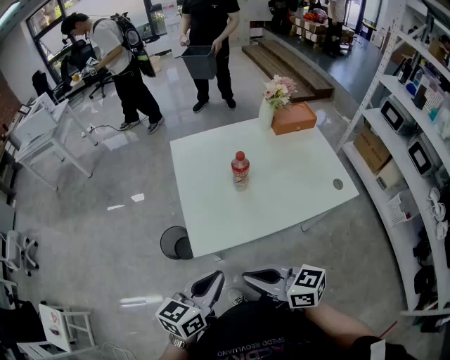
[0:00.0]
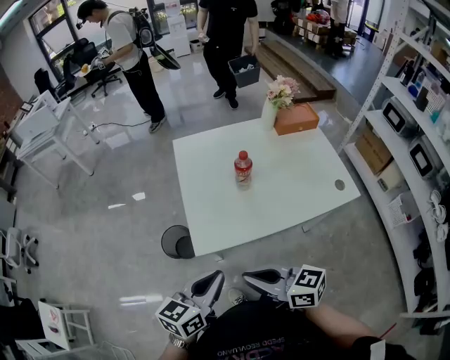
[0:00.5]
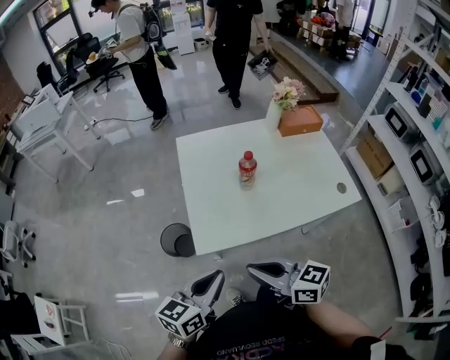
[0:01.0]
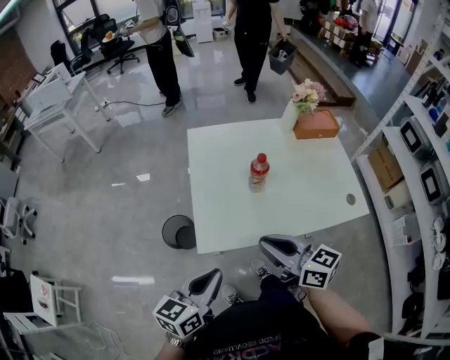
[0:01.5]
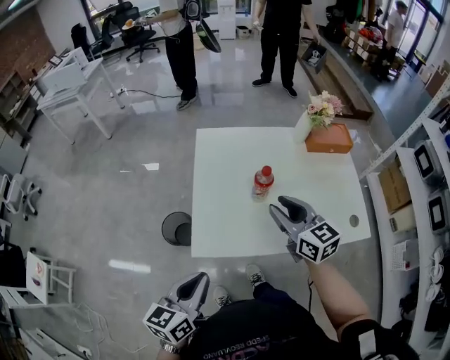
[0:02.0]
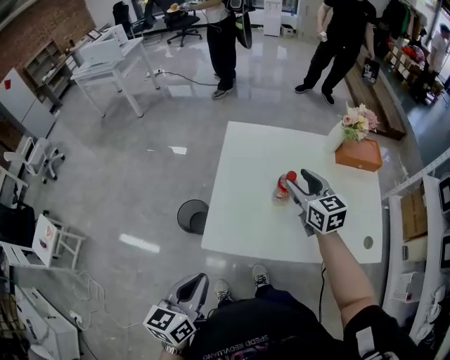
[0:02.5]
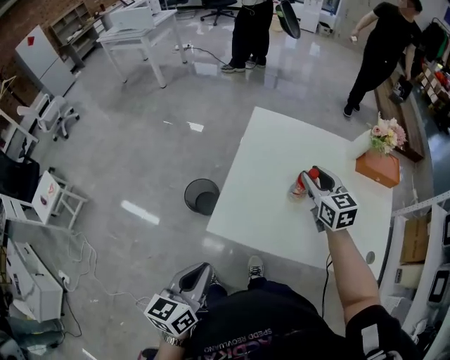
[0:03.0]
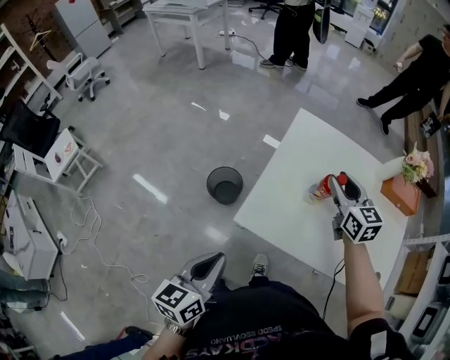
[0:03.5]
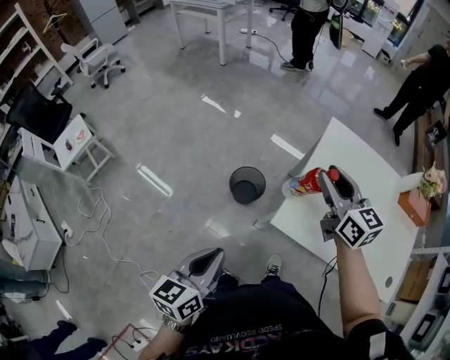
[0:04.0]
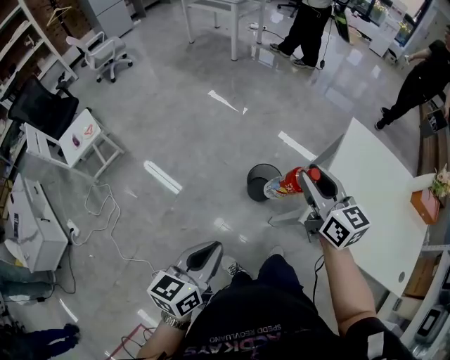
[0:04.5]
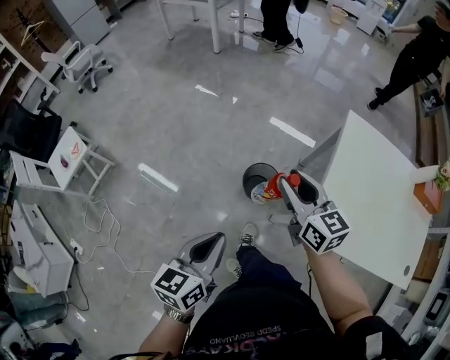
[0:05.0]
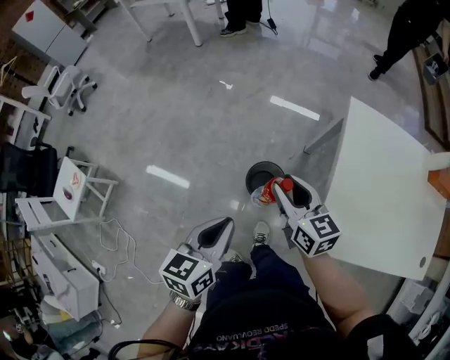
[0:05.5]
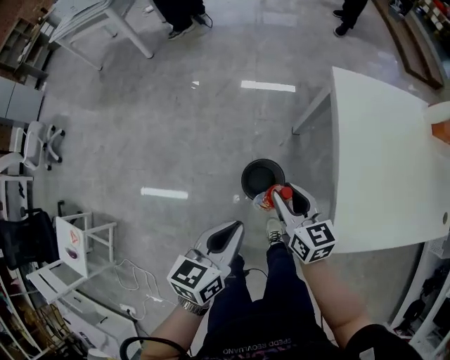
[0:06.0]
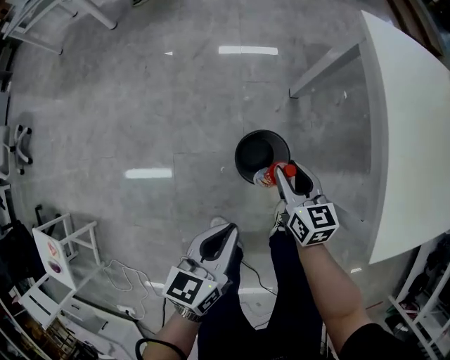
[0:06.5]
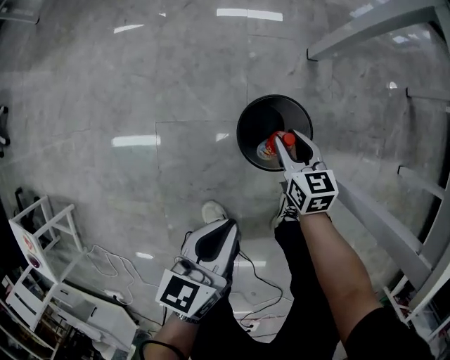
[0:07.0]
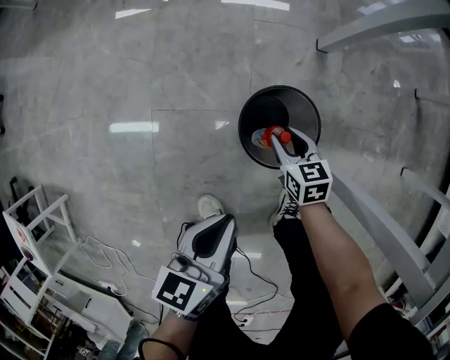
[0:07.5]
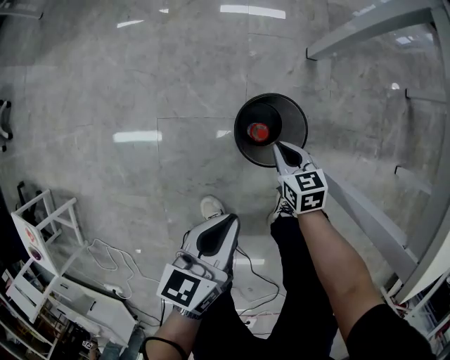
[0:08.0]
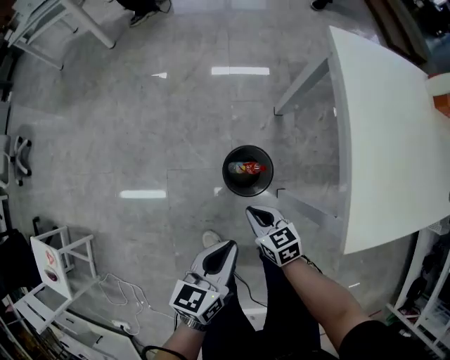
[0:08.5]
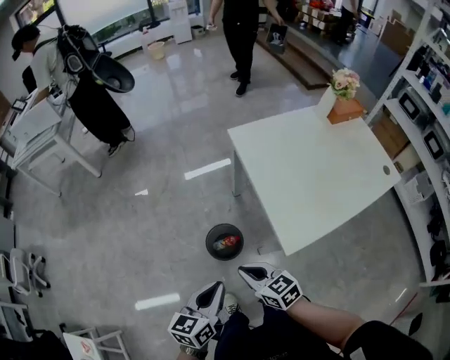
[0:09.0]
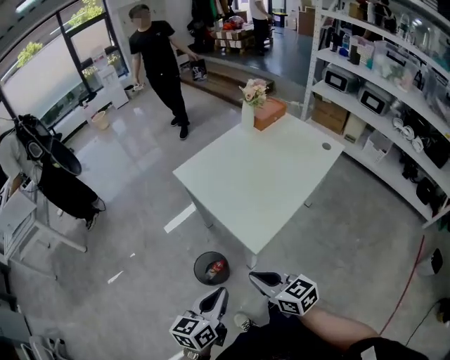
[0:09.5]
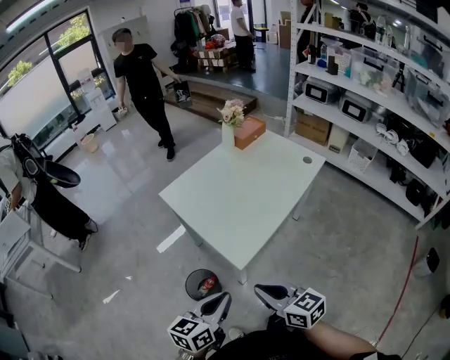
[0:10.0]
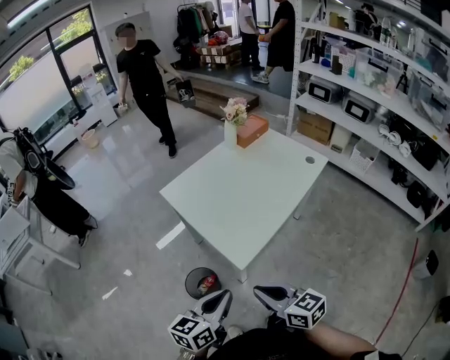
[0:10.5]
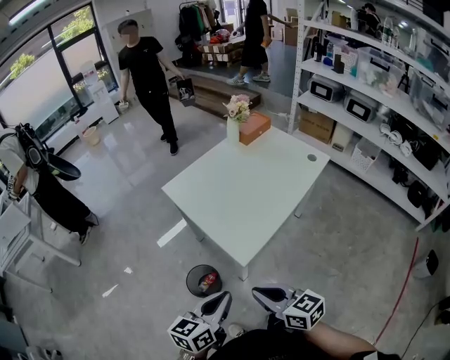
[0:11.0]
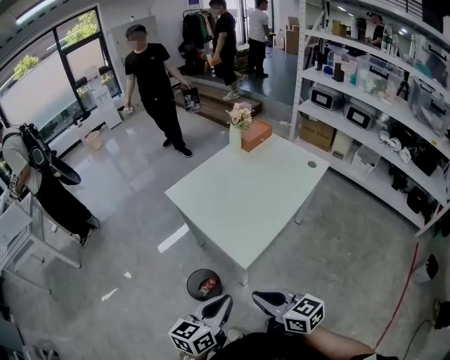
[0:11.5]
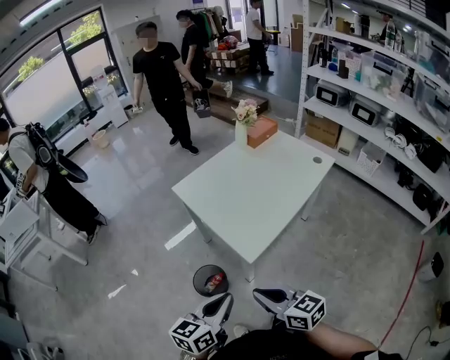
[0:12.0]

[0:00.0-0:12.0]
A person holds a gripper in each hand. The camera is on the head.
0:00.0 to 0:02.0: The left gripper rotates some 20 degrees, while the right gripper is displaced forward and to the right by approximately 30 cm, rotates roughly 30 degrees, and opens its fingers.
0:02.0 to 0:04.0: The left gripper ends up roughly 20 cm from where it was, and swivels about 30 degrees; the right gripper ends up roughly 30 cm from where it was, rotates roughly 20 degrees, and opens, then closes once more.
0:04.0 to 0:06.0: The left gripper changes place by approximately 35 cm, and turns by approximately 30 degrees. Meanwhile the right gripper is displaced downward by roughly 25 cm, and rotates approximately 30 degrees.
0:06.0 to 0:08.0: Both grippers travel together downward, about 40 cm. The right gripper changes its angle by approximately 20 degrees, and closes.
0:08.0 to 0:10.0: Both grippers move upward, some 60 cm. The right gripper tilts its fingers some 30 degrees upward; the left gripper swivels about 50 degrees.
0:10.0 to 0:12.0: The grippers move only a little.

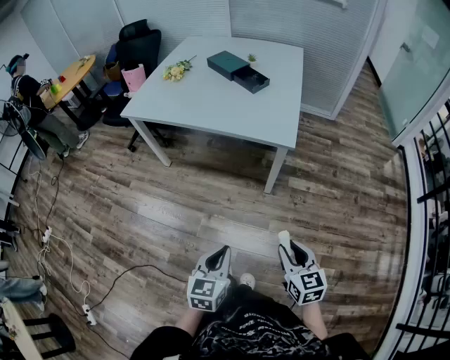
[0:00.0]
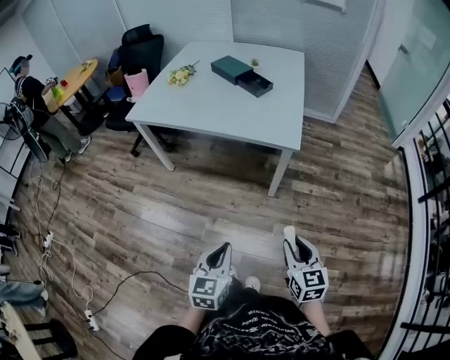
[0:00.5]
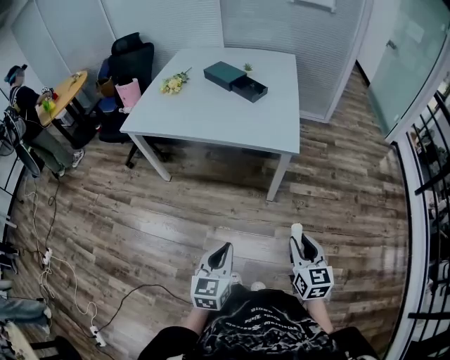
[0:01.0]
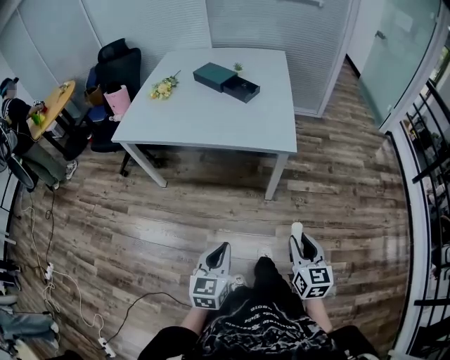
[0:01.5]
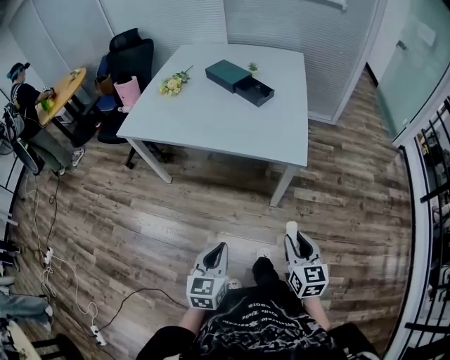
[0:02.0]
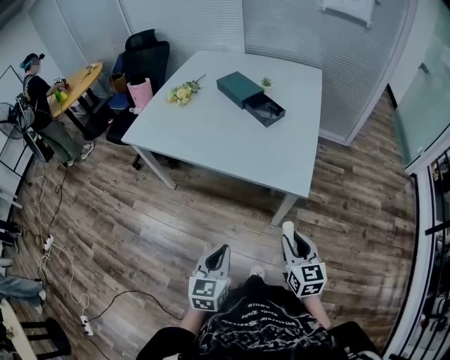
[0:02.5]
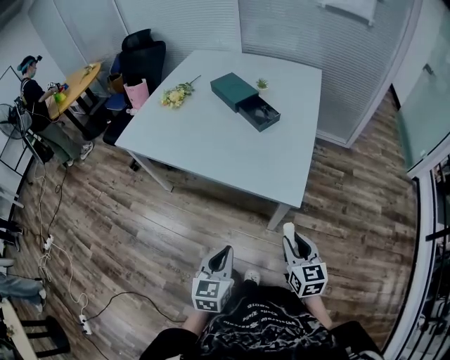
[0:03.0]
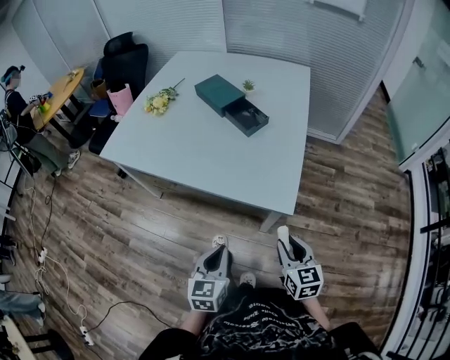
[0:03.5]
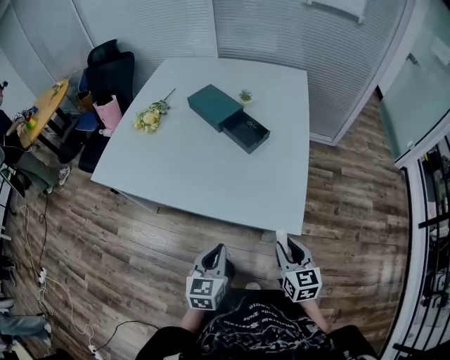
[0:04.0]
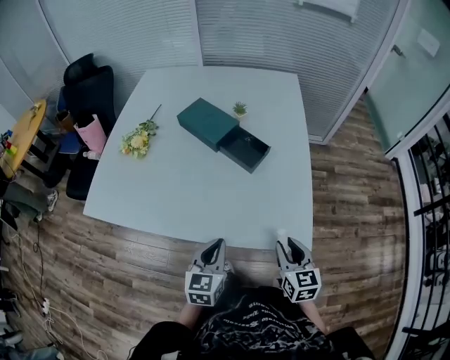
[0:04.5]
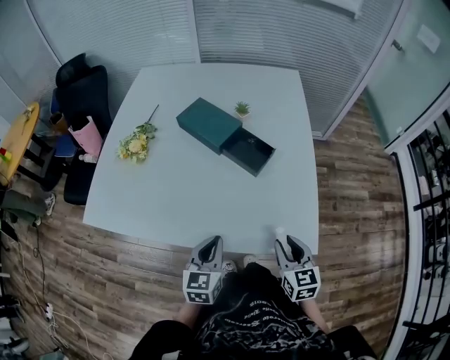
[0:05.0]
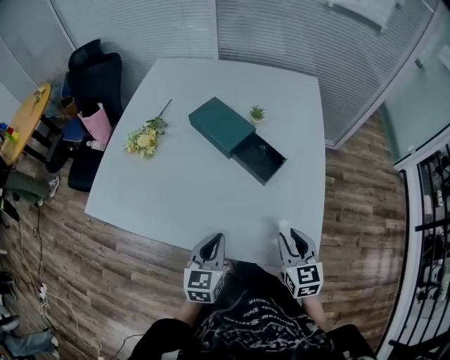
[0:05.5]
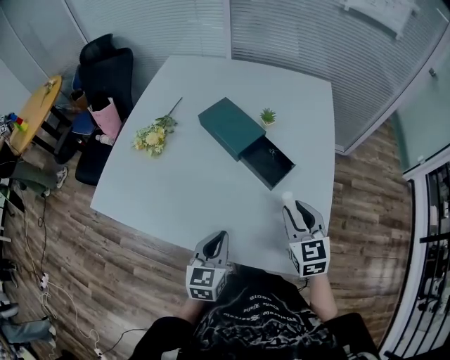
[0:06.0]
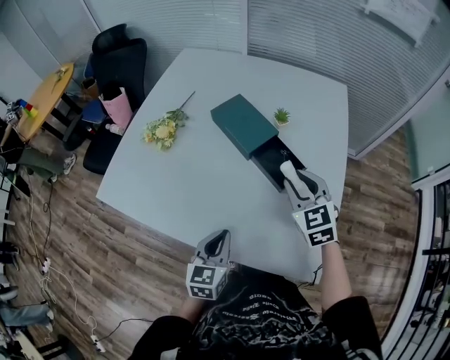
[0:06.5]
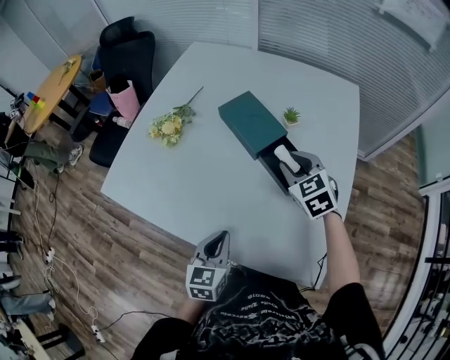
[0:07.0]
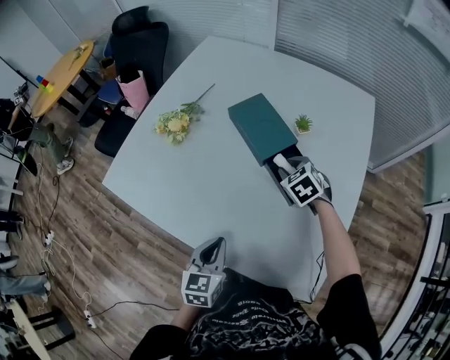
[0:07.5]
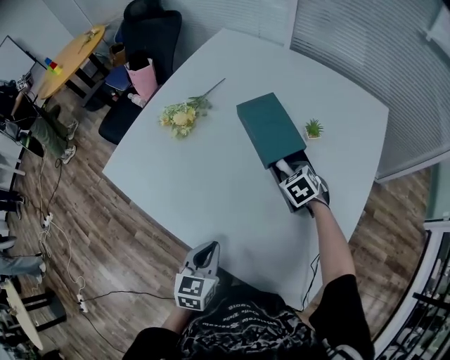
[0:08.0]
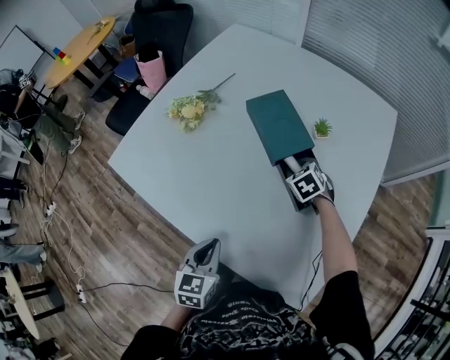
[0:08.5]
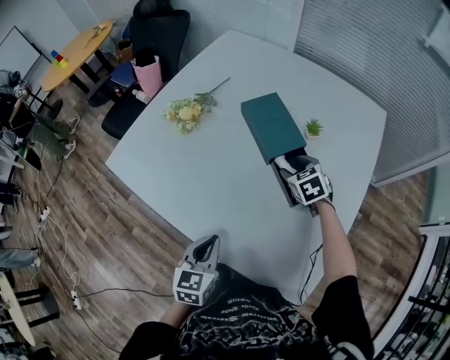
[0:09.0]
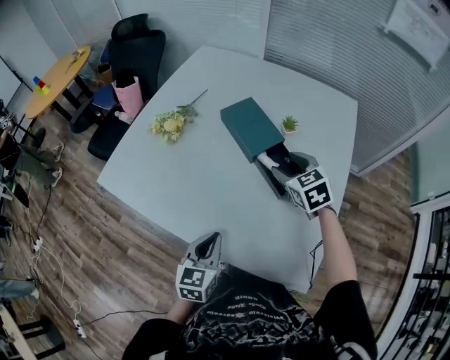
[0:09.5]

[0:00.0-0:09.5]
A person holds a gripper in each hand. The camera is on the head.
0:00.0 to 0:02.0: The left gripper is displaced forward and to the left by approximately 15 cm, while the right gripper moves forward, some 15 cm.
0:02.0 to 0:04.0: Both grippers travel together forward, some 30 cm.
0:04.0 to 0:05.5: Both grippers travel together forward and to the left, about 20 cm.
0:05.5 to 0:07.5: The right gripper shifts some 30 cm forward, and changes its angle by some 40 degrees, while the left gripper ends up about 5 cm from where it was.
0:07.5 to 0:09.5: The right gripper heads upward and backward, covering some 10 cm, and opens.

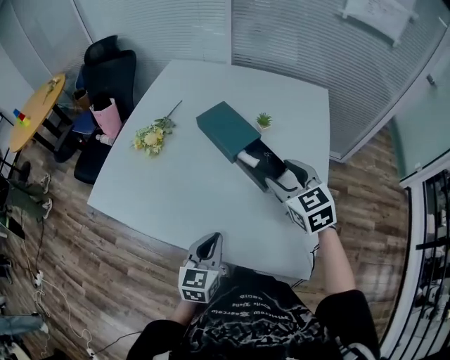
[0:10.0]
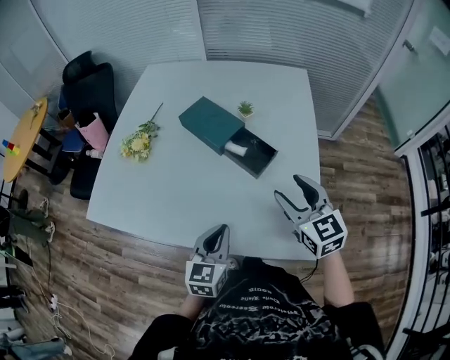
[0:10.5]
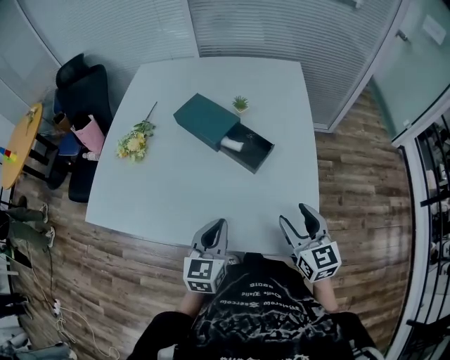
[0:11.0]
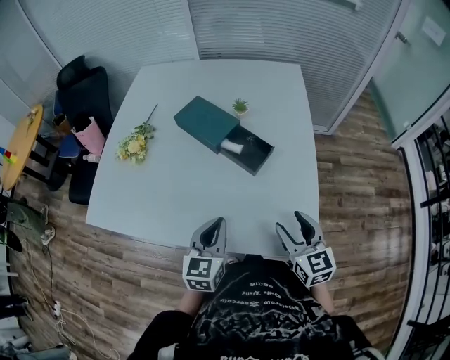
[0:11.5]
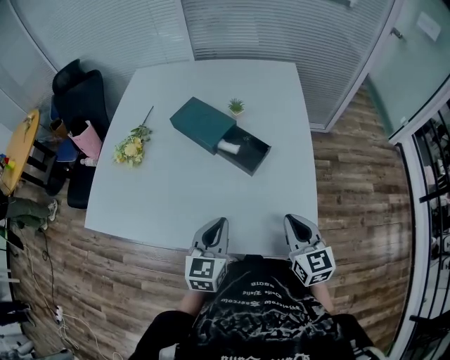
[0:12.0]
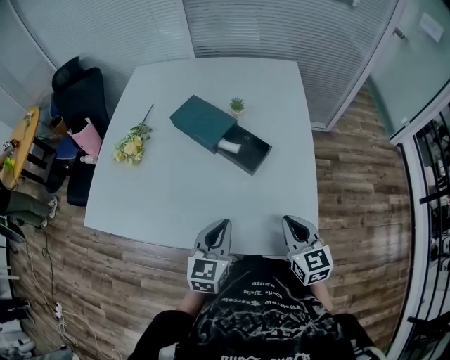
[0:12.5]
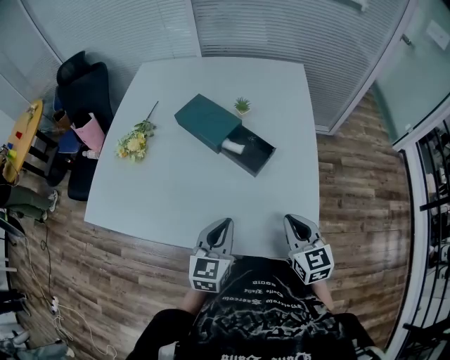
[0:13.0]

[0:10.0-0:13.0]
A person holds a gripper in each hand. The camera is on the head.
0:10.0 to 0:11.5: The right gripper is displaced backward and downward by some 20 cm, and rotates roughly 30 degrees.
0:11.5 to 0:13.0: The right gripper closes its fingers.

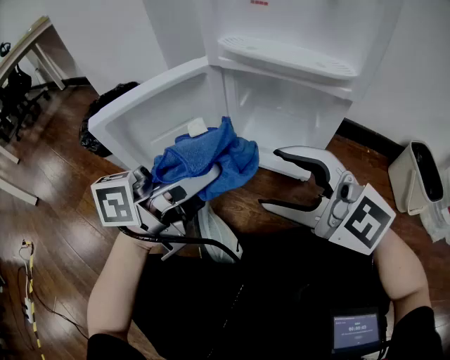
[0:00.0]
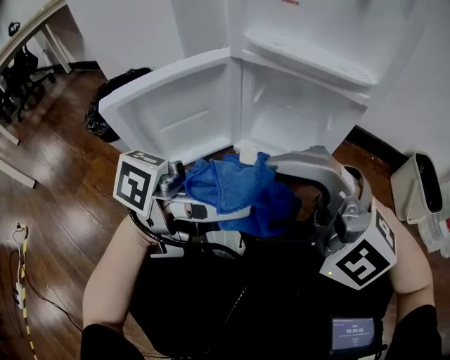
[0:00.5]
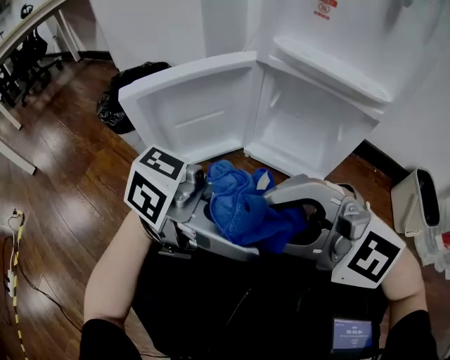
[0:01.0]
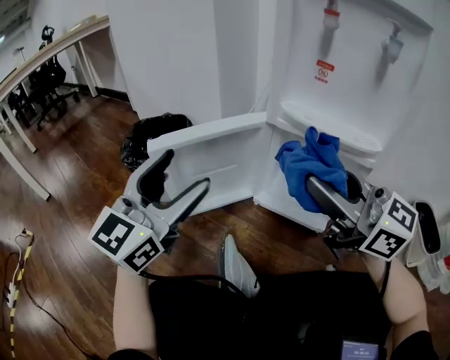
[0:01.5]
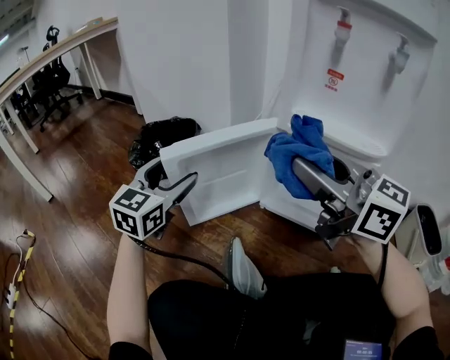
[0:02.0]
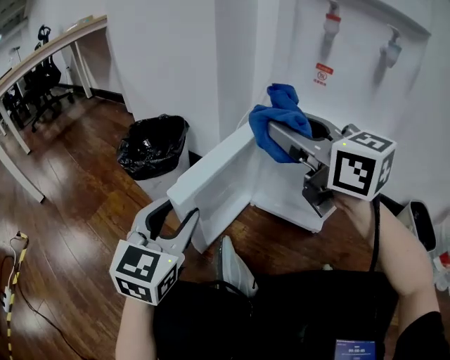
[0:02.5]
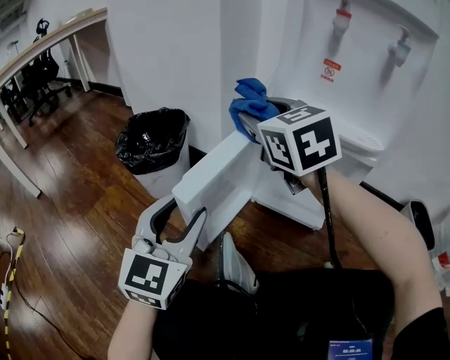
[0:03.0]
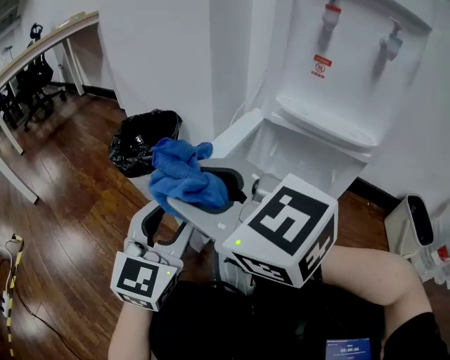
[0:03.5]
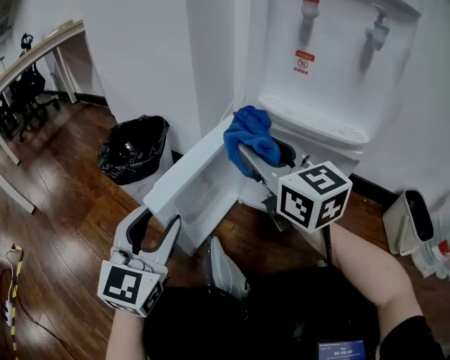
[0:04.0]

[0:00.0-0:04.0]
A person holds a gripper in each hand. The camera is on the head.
0:00.0 to 0:02.0: The right gripper heads upward, covering roughly 15 cm, rotates some 30 degrees, and closes up; the left gripper travels upward and back again, some 10 cm each way, swivels roughly 70 degrees, and opens its fingers.
0:02.0 to 0:04.0: The right gripper travels forward and downward by roughly 10 cm, travels to the left and back again, some 15 cm each way, and changes its angle by roughly 20 degrees. Meanwhile the left gripper heads backward, covering about 10 cm, and closes up.
